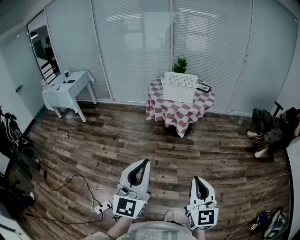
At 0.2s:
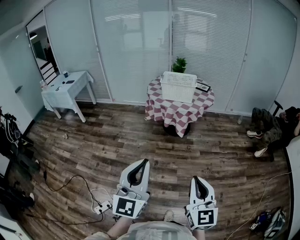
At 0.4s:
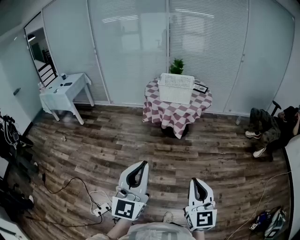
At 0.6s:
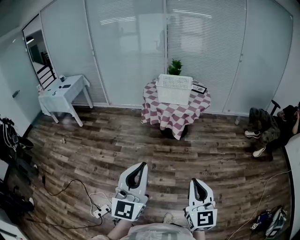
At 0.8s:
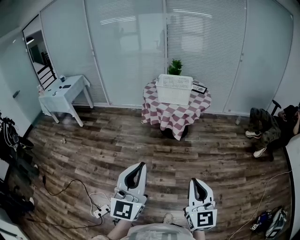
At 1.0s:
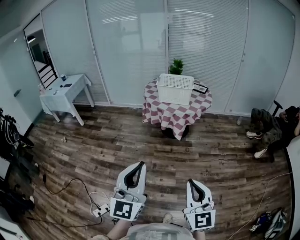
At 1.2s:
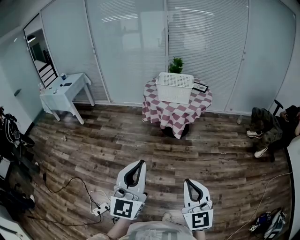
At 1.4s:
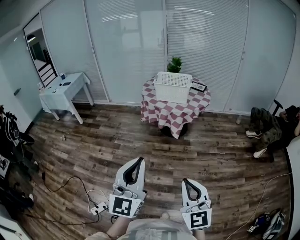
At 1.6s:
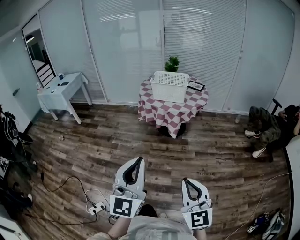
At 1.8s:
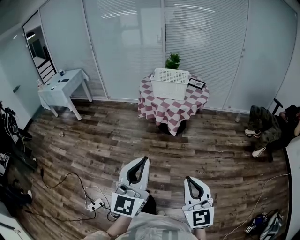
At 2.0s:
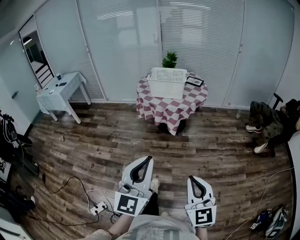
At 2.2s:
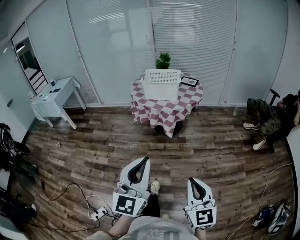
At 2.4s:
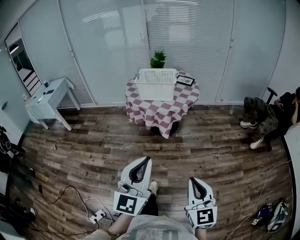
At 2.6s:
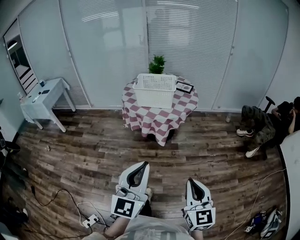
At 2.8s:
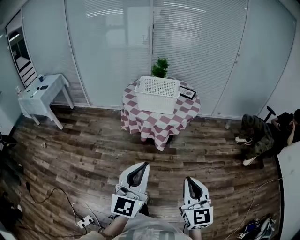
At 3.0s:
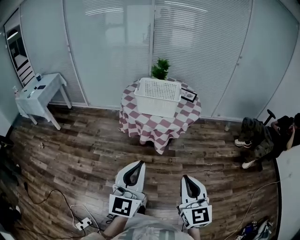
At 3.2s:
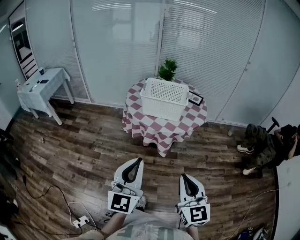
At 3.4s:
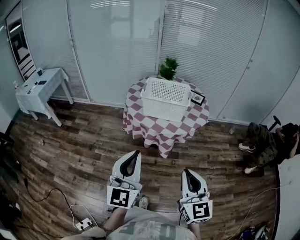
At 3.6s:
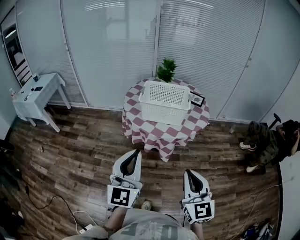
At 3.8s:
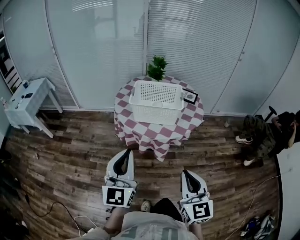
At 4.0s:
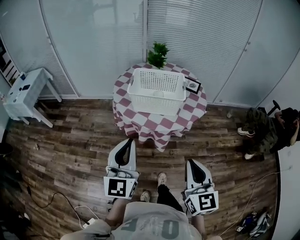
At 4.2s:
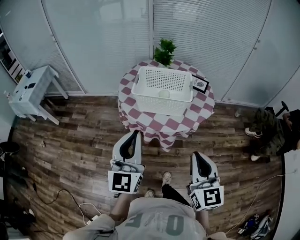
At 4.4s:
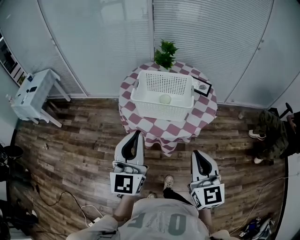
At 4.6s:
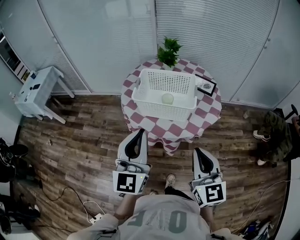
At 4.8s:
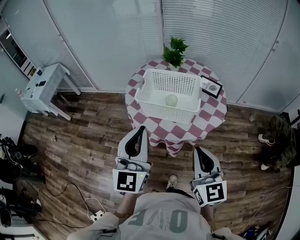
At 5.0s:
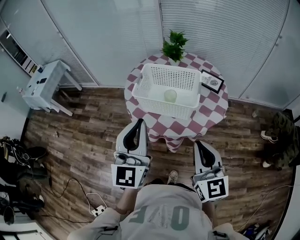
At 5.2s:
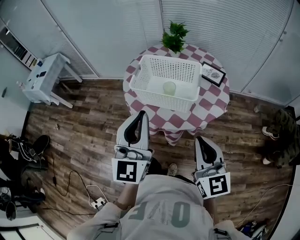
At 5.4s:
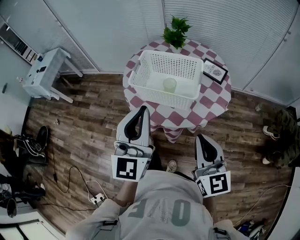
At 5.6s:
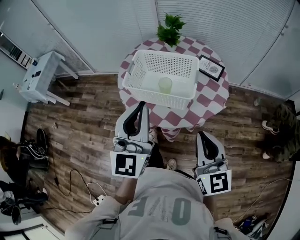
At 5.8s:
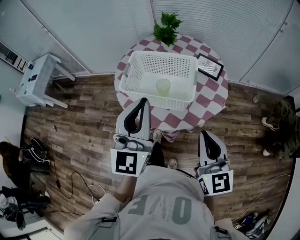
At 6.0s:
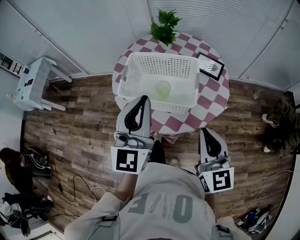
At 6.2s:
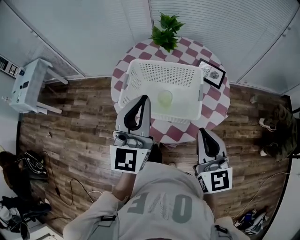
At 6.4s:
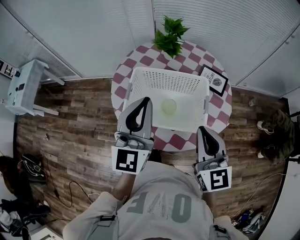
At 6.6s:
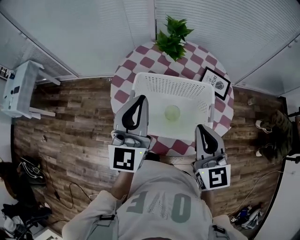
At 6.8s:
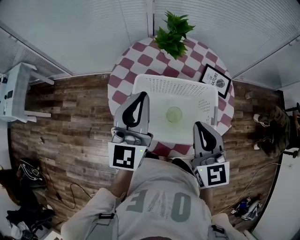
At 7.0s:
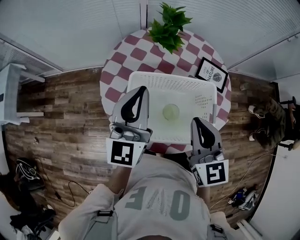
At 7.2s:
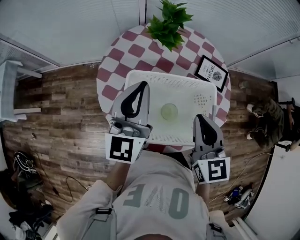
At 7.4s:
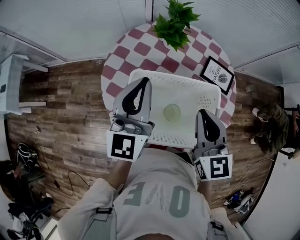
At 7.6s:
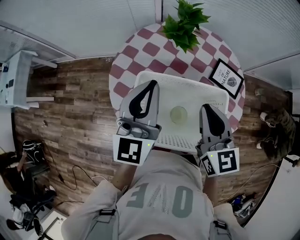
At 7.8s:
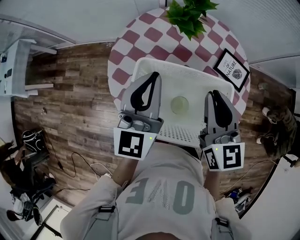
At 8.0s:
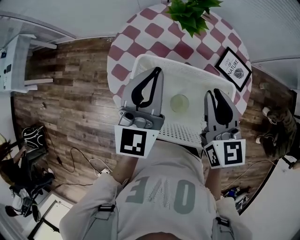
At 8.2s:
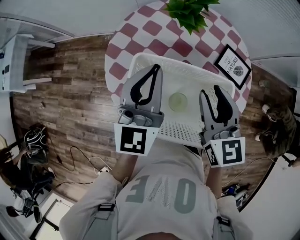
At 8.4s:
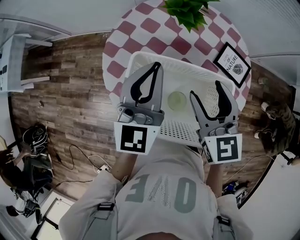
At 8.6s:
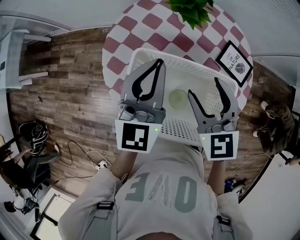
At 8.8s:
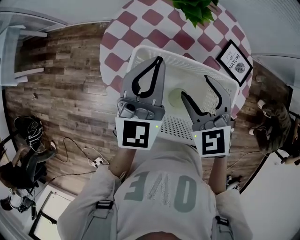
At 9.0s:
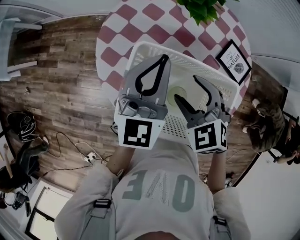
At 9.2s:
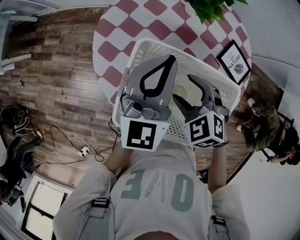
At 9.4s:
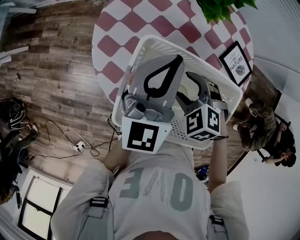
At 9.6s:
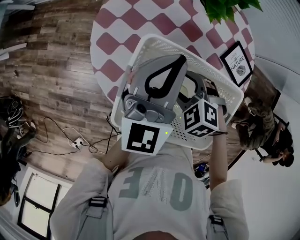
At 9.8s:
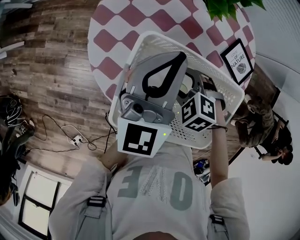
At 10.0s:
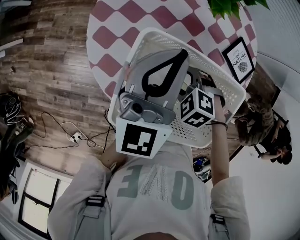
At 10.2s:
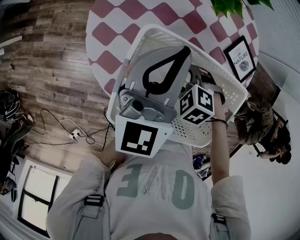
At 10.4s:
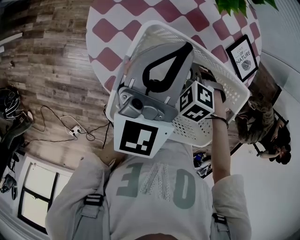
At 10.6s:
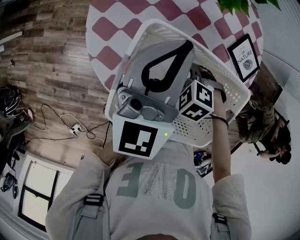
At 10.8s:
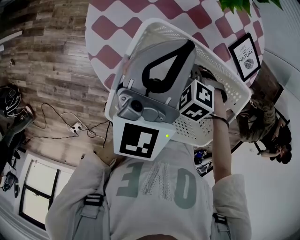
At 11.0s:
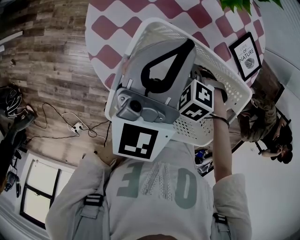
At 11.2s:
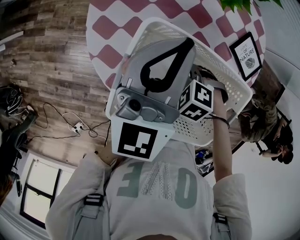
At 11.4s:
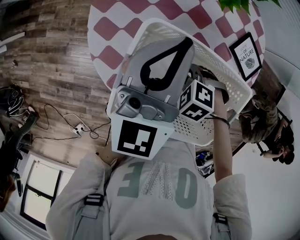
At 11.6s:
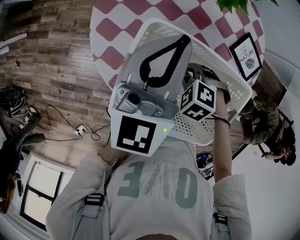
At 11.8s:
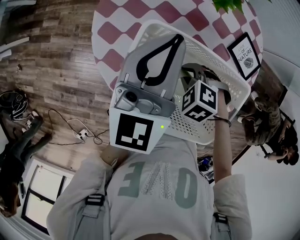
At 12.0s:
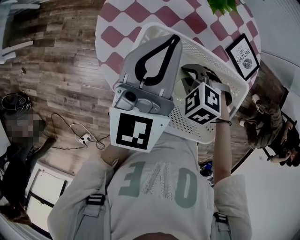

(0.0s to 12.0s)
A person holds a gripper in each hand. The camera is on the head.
0.0s - 1.6s: The left gripper travels to the right by about 5 cm; the right gripper moves some 5 cm.
1.6s - 3.0s: The grippers both shift forward by roughly 25 cm.
3.0s - 4.4s: The grippers both shift forward by approximately 30 cm.
4.4s - 6.0s: The two grippers go some 20 cm forward and to the right.
6.0s - 7.6s: Both grippers travel together forward, some 30 cm.
7.6s - 9.0s: The right gripper shifts roughly 15 cm downward and to the left, points its fingers approximately 30 degrees further downward, and opens up; the left gripper is displaced downward by some 10 cm.
9.0s - 10.4s: The right gripper heads downward, covering some 15 cm, and rotates about 40 degrees.
10.4s - 12.0s: The right gripper moves approximately 5 cm, and closes up.

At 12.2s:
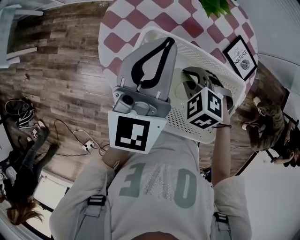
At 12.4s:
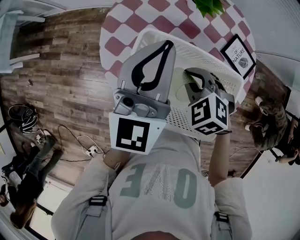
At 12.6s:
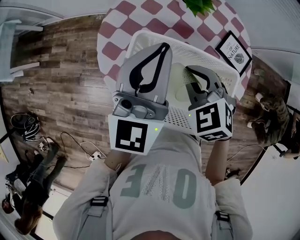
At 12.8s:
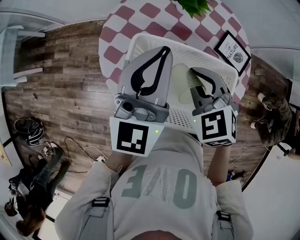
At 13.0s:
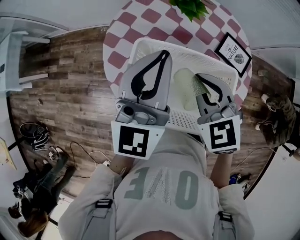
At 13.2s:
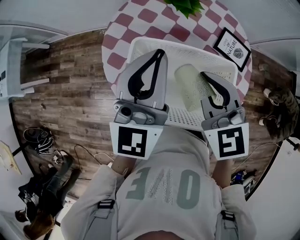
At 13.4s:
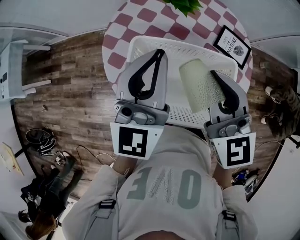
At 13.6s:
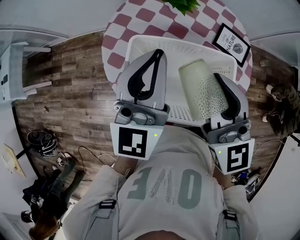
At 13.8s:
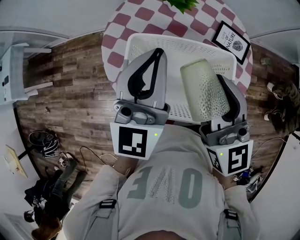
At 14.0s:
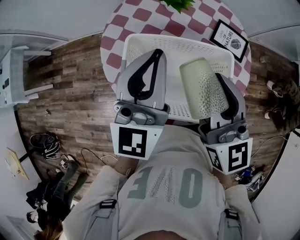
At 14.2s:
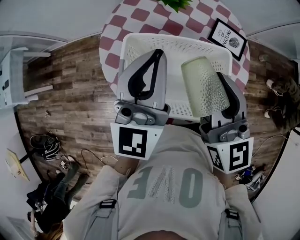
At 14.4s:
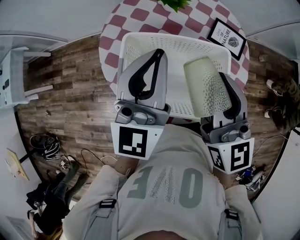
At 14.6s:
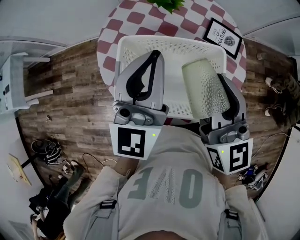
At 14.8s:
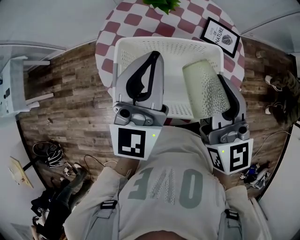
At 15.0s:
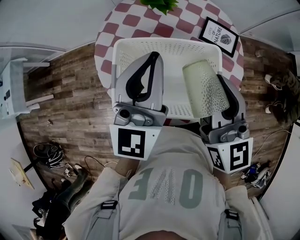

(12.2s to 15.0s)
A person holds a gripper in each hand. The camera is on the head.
12.2s - 13.6s: The right gripper goes about 25 cm upward, and points its fingers about 60 degrees further upward; the left gripper heads backward and upward, covering some 10 cm.
13.6s - 15.0s: The right gripper travels to the right by approximately 5 cm.

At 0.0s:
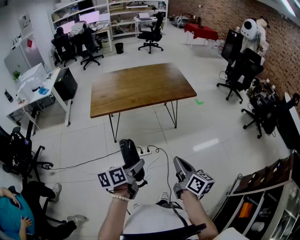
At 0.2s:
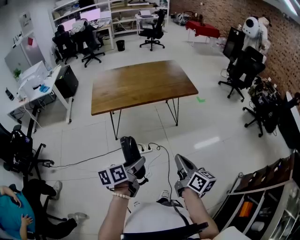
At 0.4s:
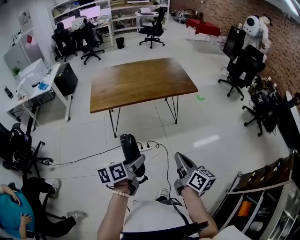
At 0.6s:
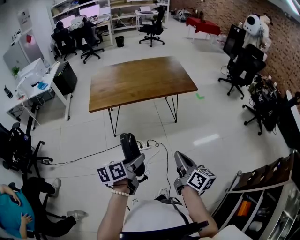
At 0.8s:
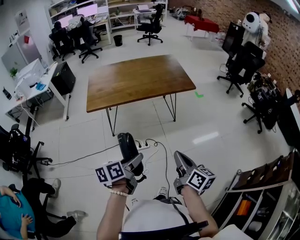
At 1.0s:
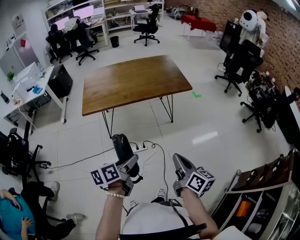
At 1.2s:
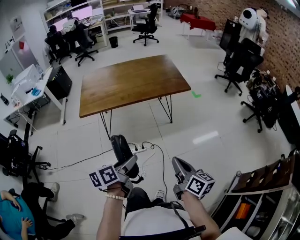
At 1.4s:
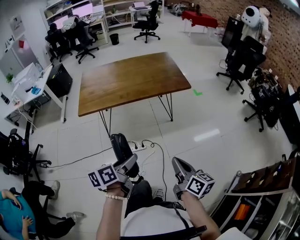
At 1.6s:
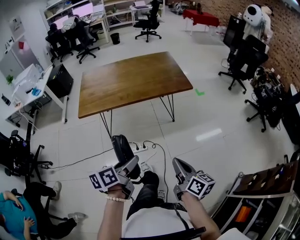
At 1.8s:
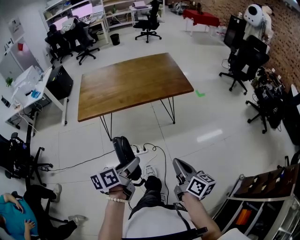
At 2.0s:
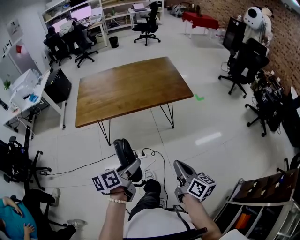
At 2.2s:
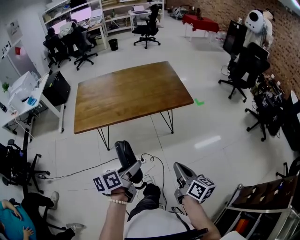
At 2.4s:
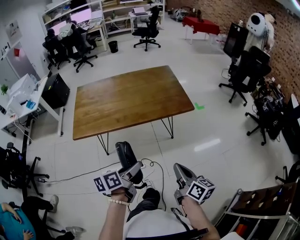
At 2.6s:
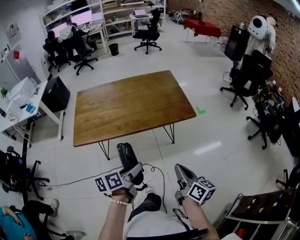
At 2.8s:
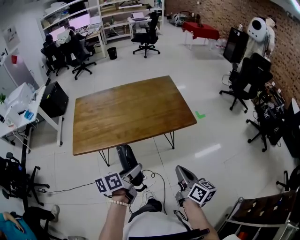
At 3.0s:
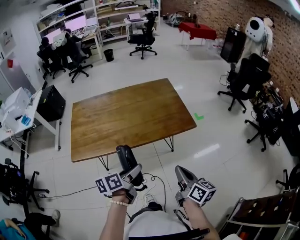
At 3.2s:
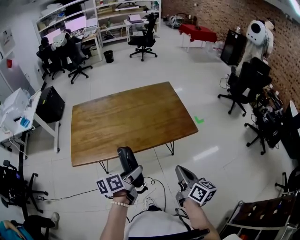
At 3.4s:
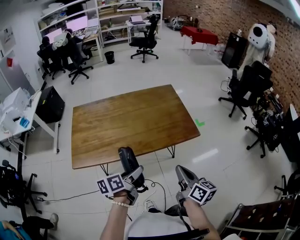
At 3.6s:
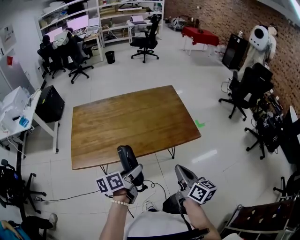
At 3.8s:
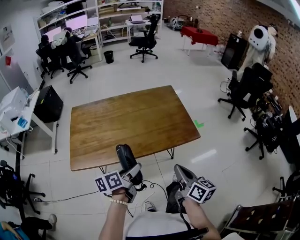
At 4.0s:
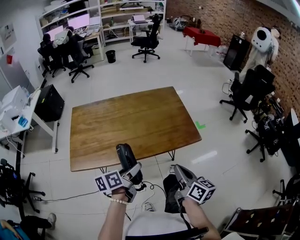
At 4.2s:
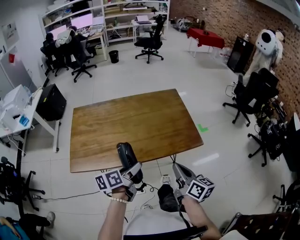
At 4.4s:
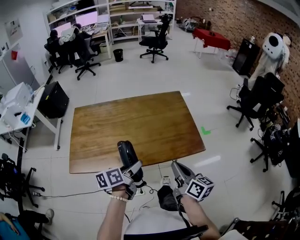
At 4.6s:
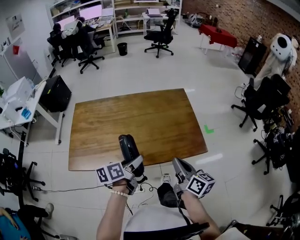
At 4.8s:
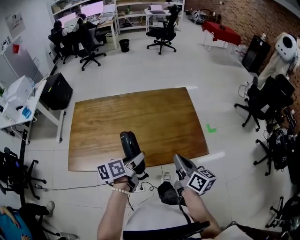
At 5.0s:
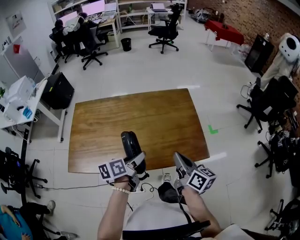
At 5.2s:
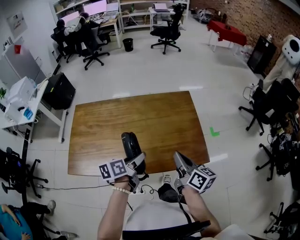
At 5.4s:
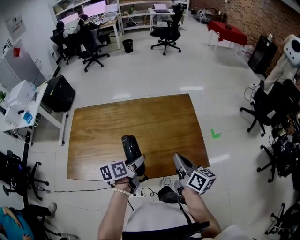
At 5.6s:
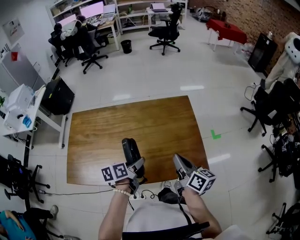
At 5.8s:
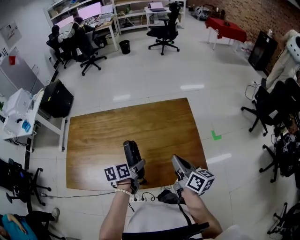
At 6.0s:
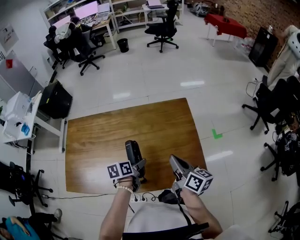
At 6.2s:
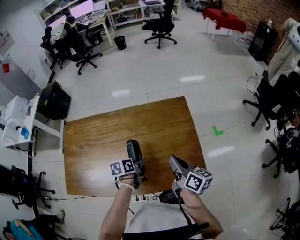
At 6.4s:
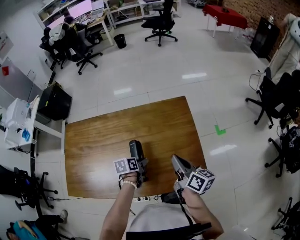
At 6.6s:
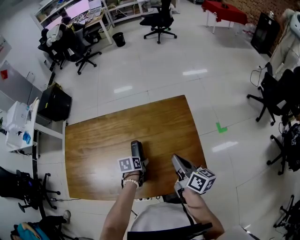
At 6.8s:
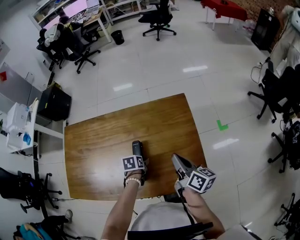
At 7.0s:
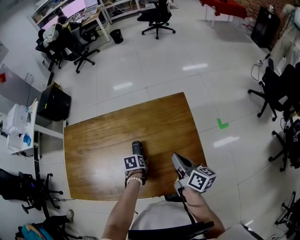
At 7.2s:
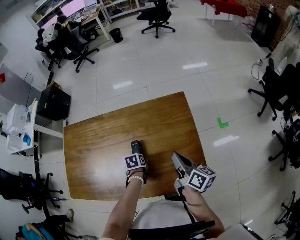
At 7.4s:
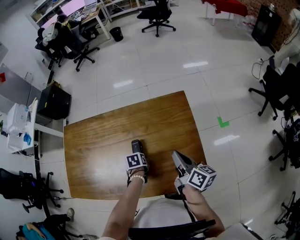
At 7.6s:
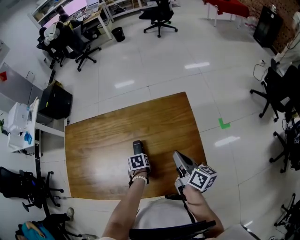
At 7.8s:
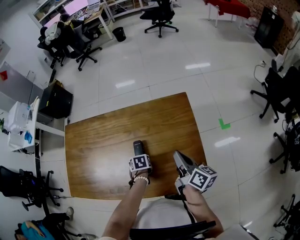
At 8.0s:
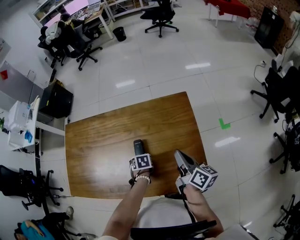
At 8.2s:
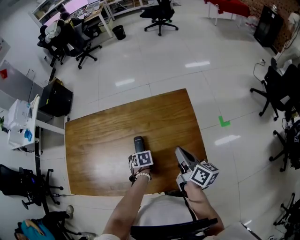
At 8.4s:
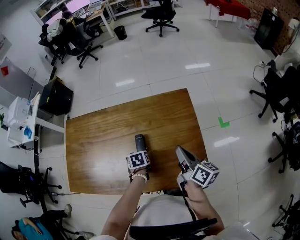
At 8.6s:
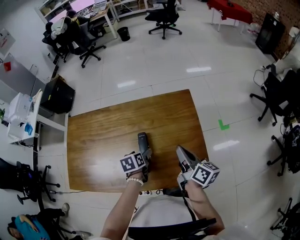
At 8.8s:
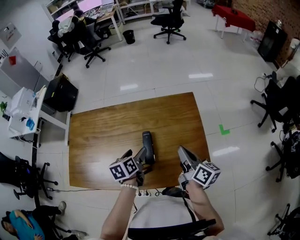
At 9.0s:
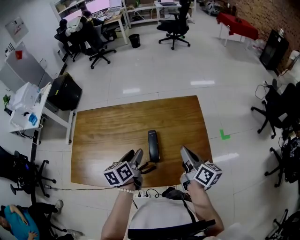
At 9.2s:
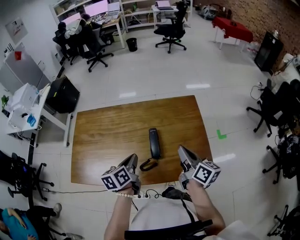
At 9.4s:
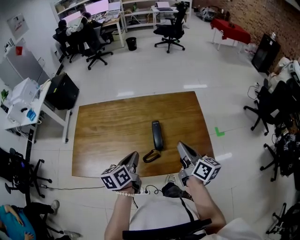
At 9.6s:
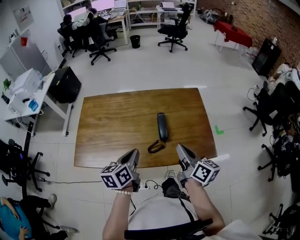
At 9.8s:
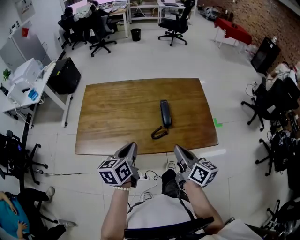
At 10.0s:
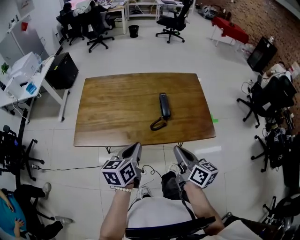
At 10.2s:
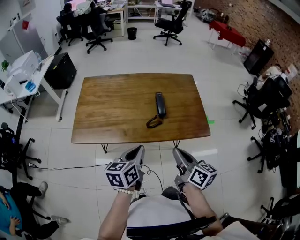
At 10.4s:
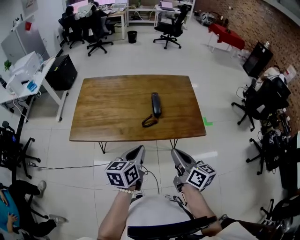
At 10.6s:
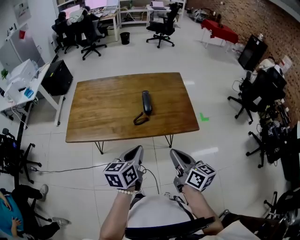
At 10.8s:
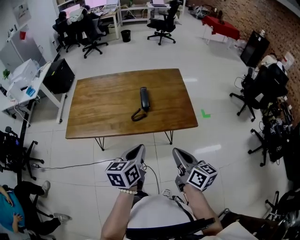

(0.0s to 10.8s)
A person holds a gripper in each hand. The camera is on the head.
0.0s - 1.6s: The left gripper is displaced forward and to the right by roughly 10 cm, while the right gripper shifts about 10 cm to the right and forward.
1.6s - 3.0s: Both grippers move forward, about 25 cm.
3.0s - 4.6s: The two grippers go about 20 cm forward.
4.6s - 6.2s: The left gripper goes approximately 25 cm forward and downward, and turns by approximately 30 degrees; the right gripper shifts about 20 cm forward.
6.2s - 7.8s: The right gripper shifts by roughly 5 cm, while the left gripper moves downward, roughly 10 cm, and angles its fingers downward, by approximately 30 degrees.
7.8s - 9.2s: The right gripper shifts by some 10 cm, while the left gripper shifts approximately 25 cm upward, tilts its fingers approximately 50 degrees upward, and closes.
9.2s - 10.8s: The grippers both shift backward by about 30 cm.
